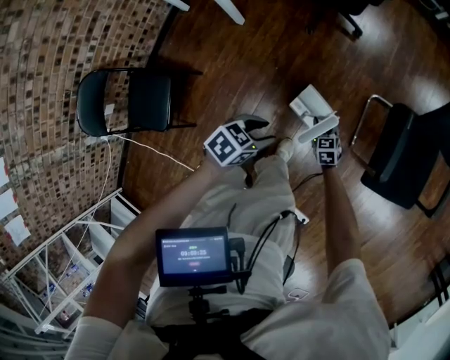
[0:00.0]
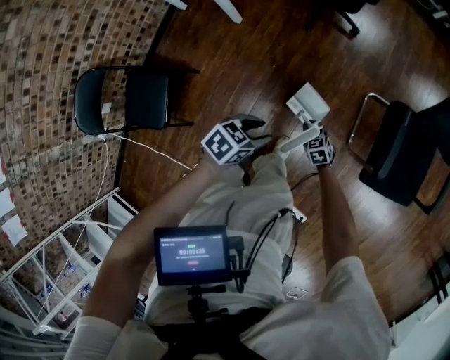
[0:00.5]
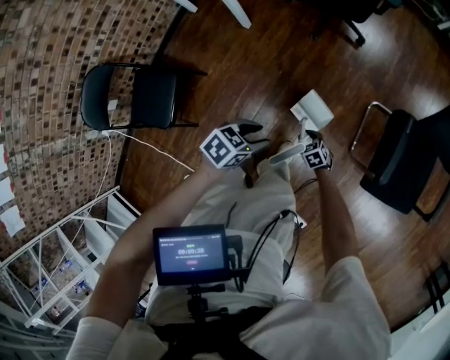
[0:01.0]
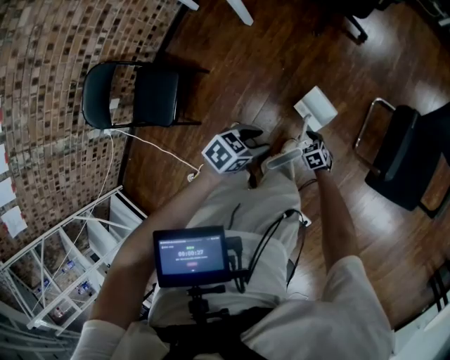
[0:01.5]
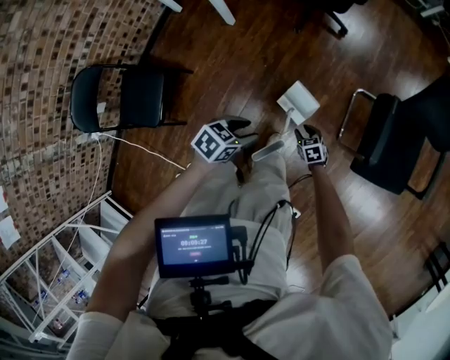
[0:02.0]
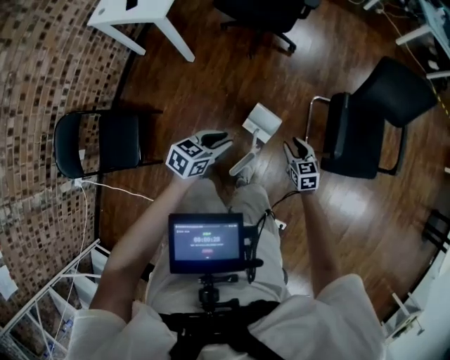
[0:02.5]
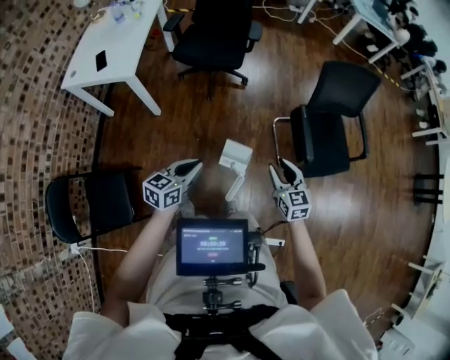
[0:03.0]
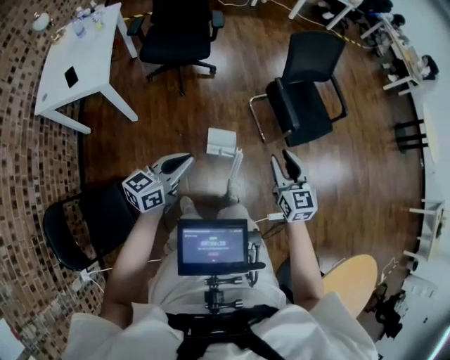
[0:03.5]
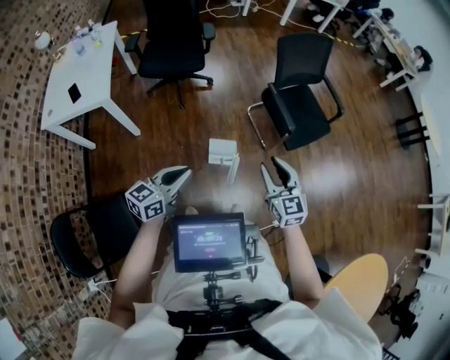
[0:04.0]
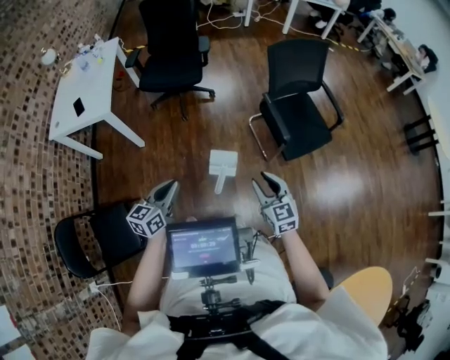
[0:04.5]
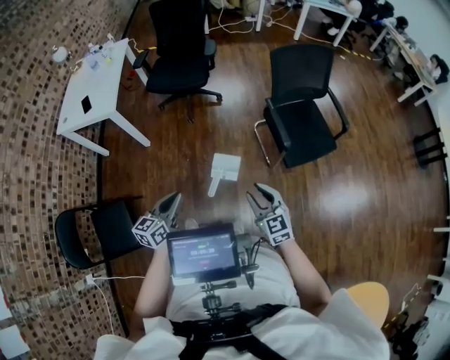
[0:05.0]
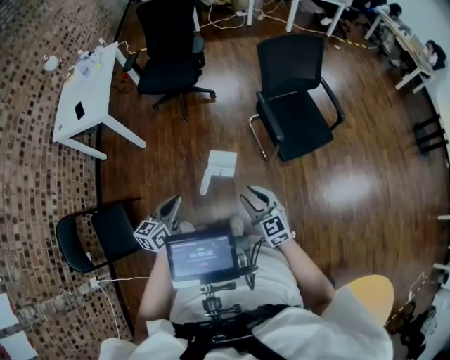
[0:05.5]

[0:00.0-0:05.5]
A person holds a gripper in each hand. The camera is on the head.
0:00.0 to 0:02.0: The left gripper ends up approximately 5 cm from where it was, while the right gripper changes place by about 10 cm, and opens.
0:02.0 to 0:03.5: The right gripper is displaced upward by approximately 50 cm, and angles its fingers upward, by some 40 degrees. Meanwhile the left gripper is displaced upward by approximately 25 cm, points its fingers roughly 40 degrees further upward, and closes.
0:03.5 to 0:05.5: The right gripper travels to the right, backward and downward by approximately 15 cm, and rotates roughly 20 degrees; the left gripper shifts some 15 cm to the right and backward, and rotates some 30 degrees.

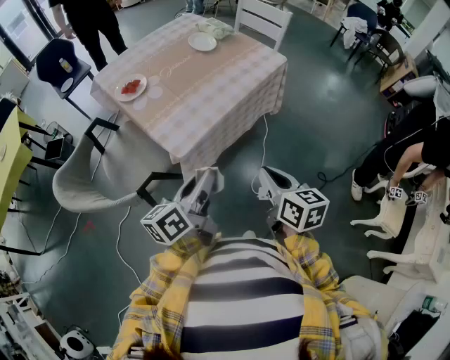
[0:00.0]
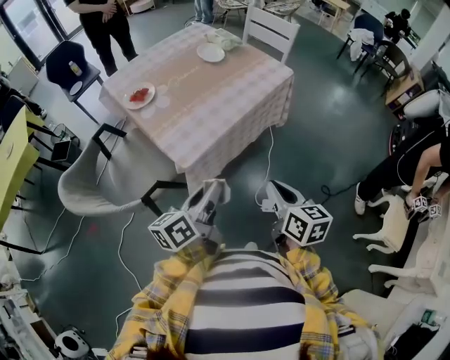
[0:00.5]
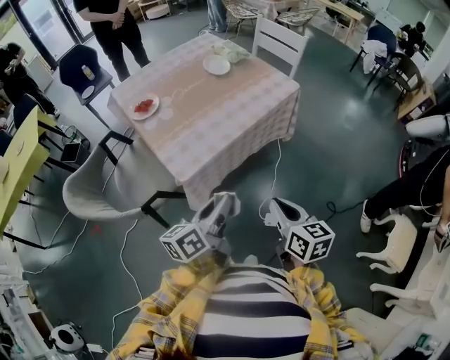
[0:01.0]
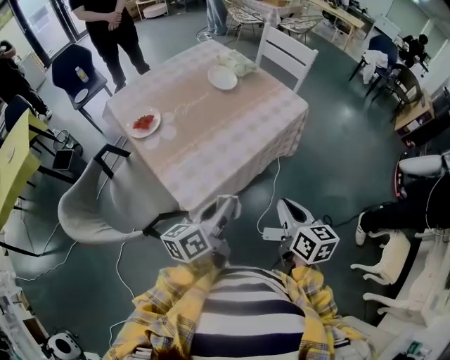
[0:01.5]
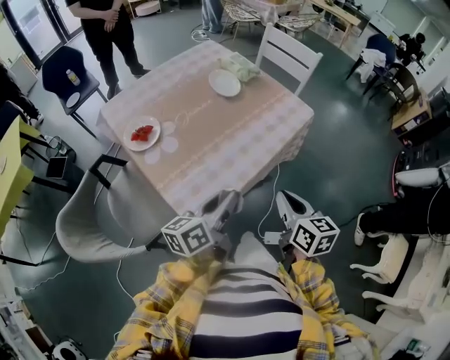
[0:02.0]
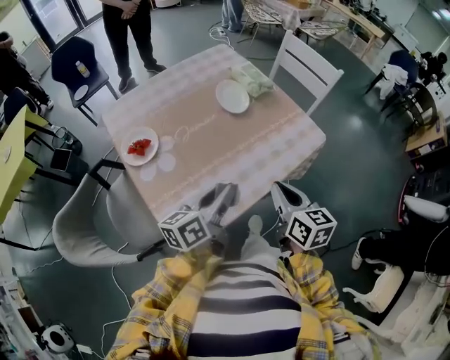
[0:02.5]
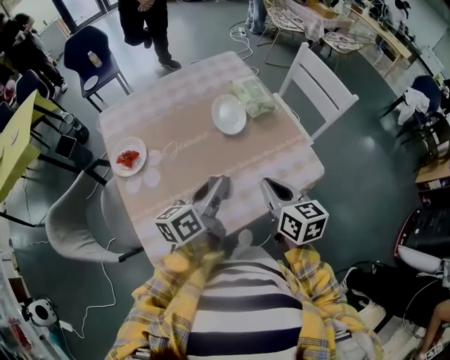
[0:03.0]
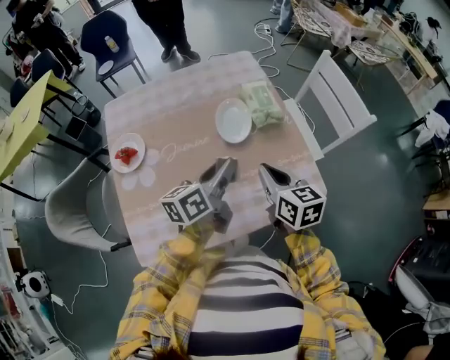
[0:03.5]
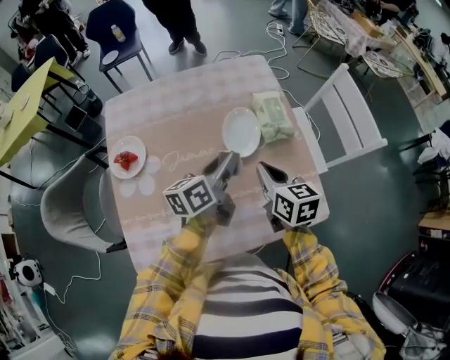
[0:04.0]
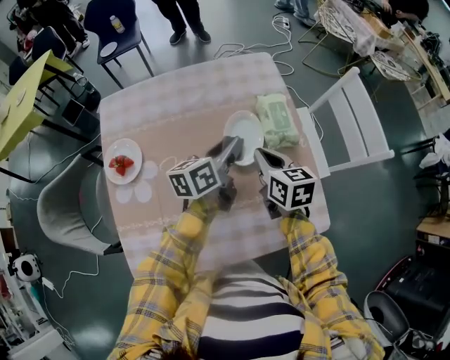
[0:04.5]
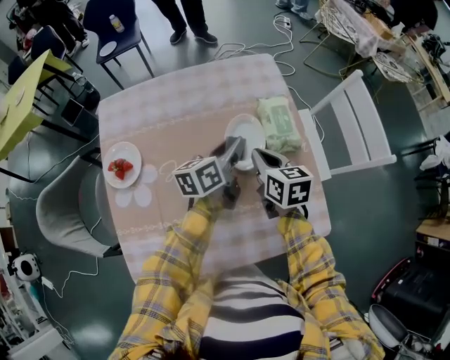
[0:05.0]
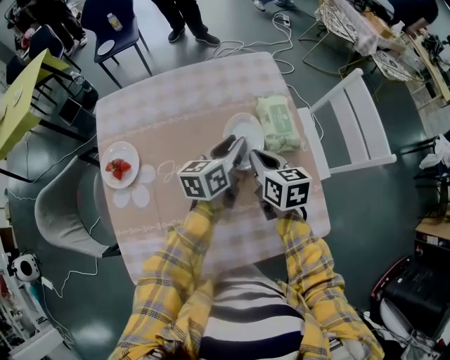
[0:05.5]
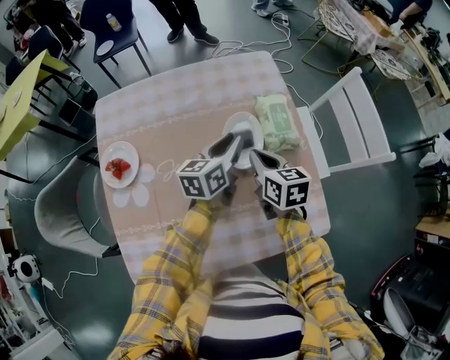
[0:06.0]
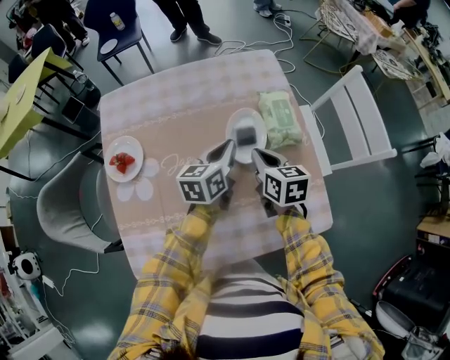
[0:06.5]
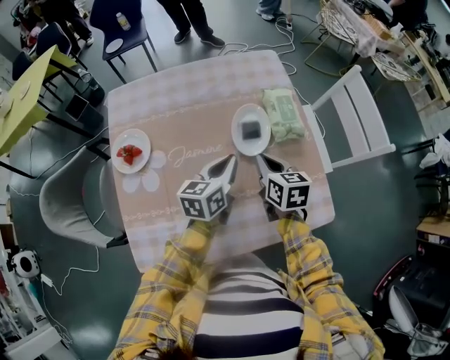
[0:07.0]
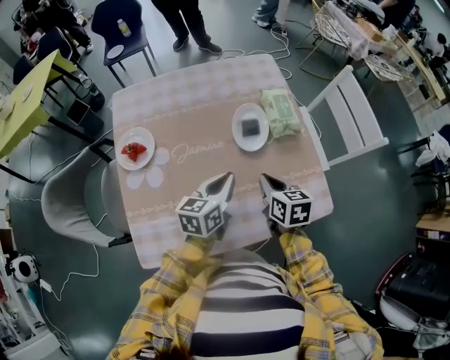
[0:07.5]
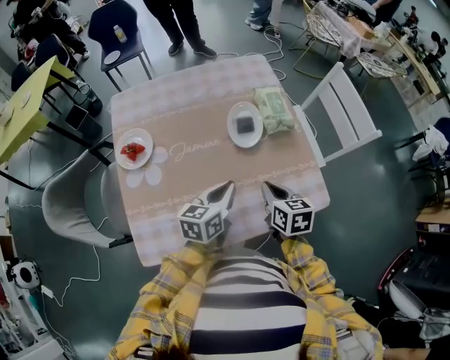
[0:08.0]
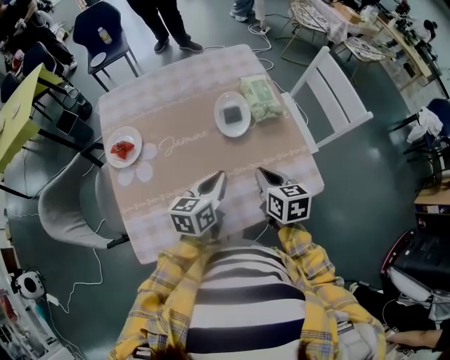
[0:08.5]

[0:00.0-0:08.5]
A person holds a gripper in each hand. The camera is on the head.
0:00.0 to 0:02.0: The two grippers go about 20 cm forward.
0:02.0 to 0:04.0: The right gripper moves roughly 40 cm, and swivels about 40 degrees, while the left gripper changes place by approximately 35 cm, and changes its angle by roughly 30 degrees.
0:04.0 to 0:06.5: The left gripper heads forward and downward, covering roughly 10 cm, and closes up. The right gripper goes some 5 cm forward.
0:06.5 to 0:08.5: Both grippers travel together backward, approximately 15 cm.

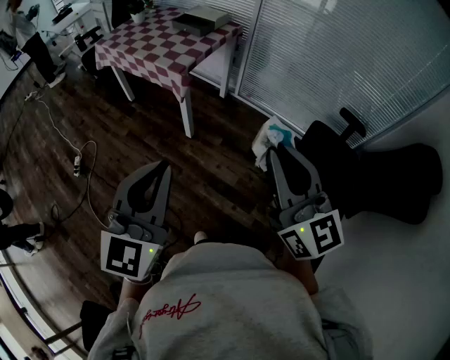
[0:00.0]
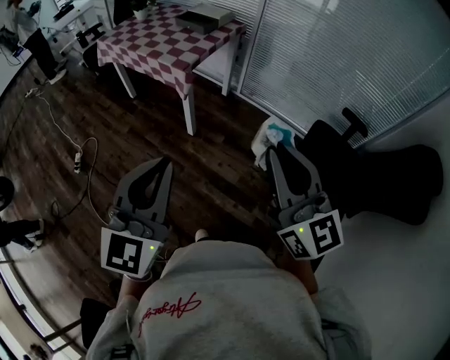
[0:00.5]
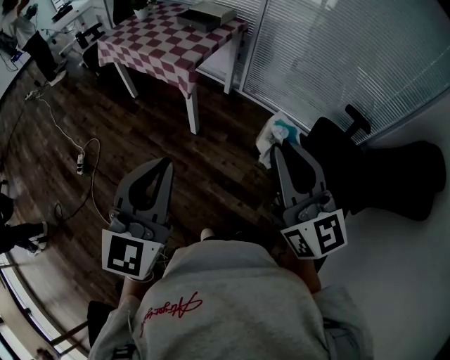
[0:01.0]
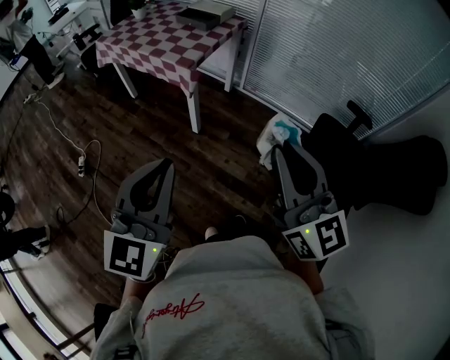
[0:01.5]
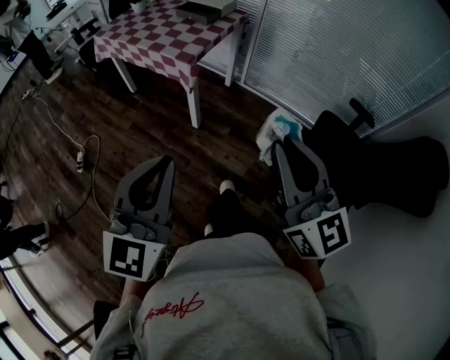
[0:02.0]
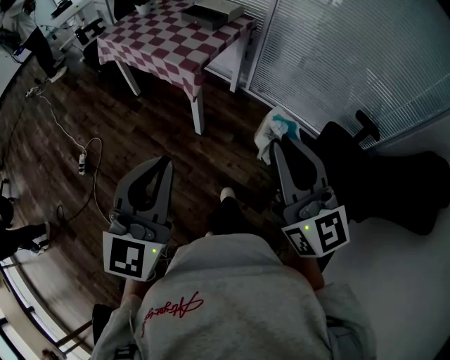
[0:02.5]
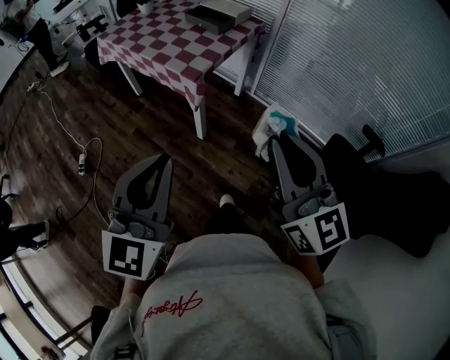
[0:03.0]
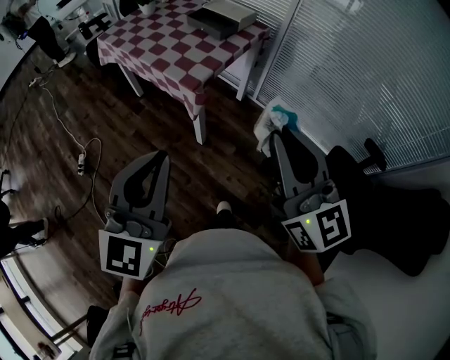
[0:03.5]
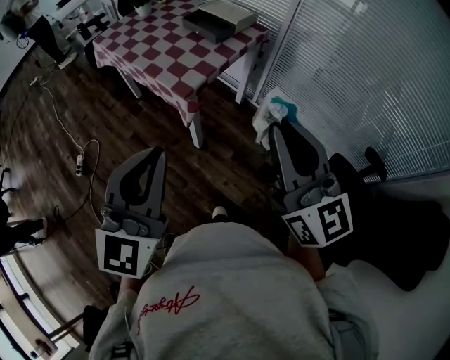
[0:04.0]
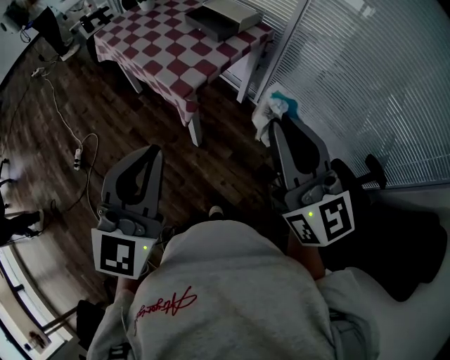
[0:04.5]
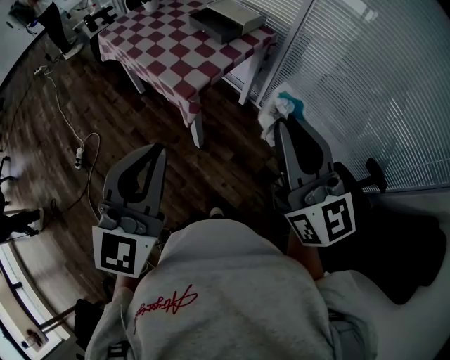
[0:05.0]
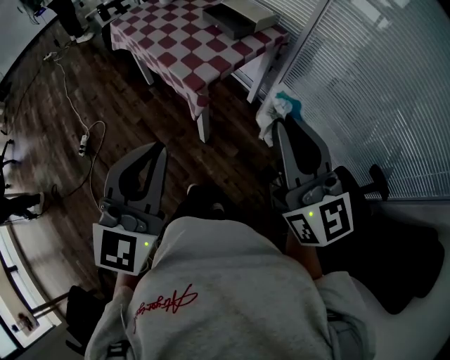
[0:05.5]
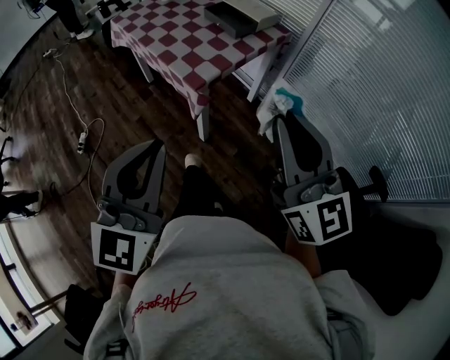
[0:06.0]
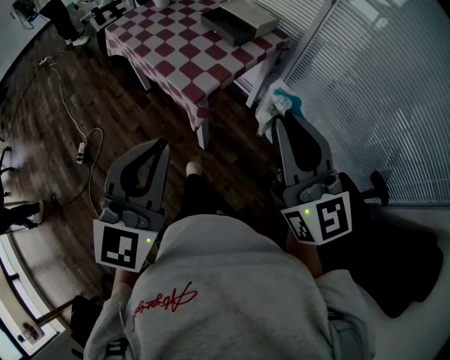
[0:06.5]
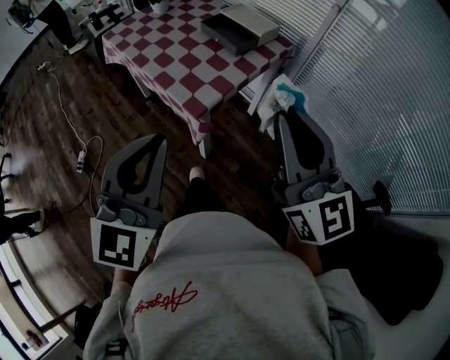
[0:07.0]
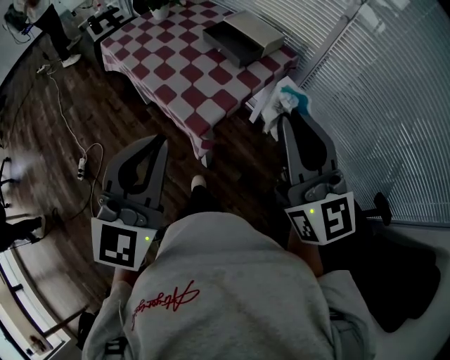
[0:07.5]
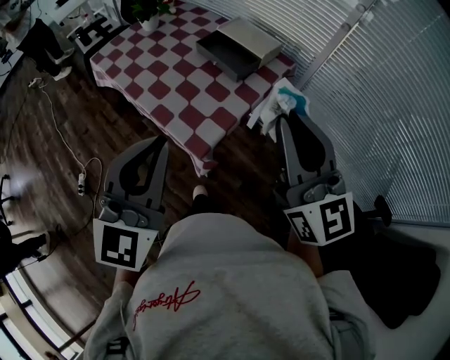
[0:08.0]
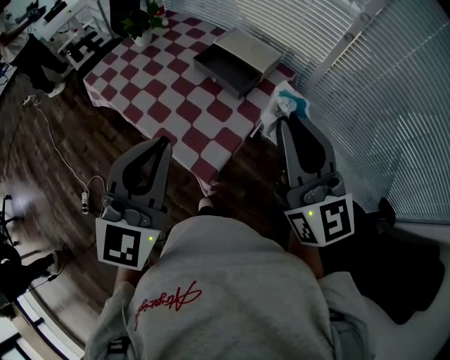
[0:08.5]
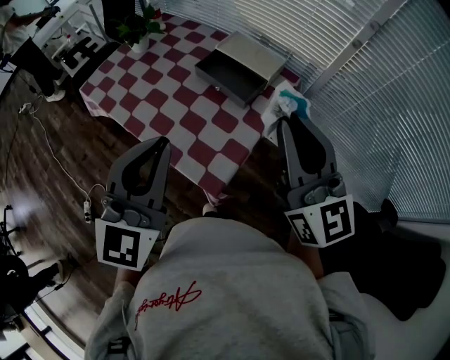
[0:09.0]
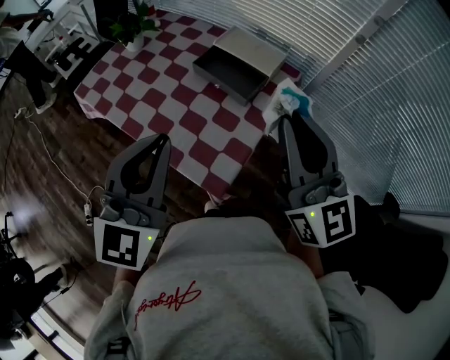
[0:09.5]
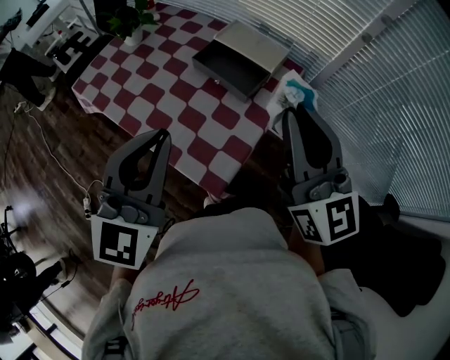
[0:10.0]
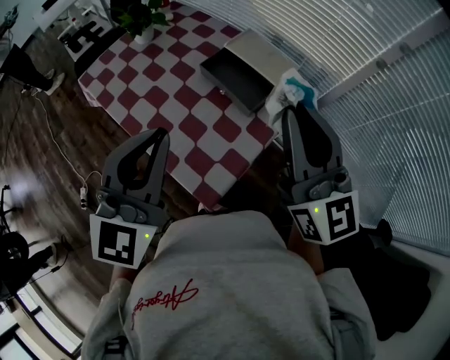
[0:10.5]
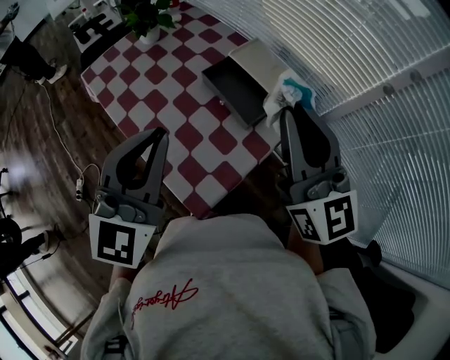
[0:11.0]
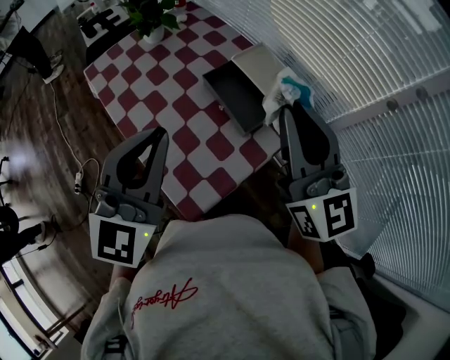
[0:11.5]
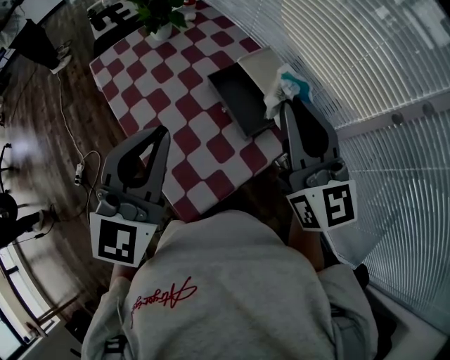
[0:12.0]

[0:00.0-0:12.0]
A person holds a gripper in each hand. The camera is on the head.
0:00.0 to 0:02.0: The two grippers go roughly 5 cm to the left.
0:02.0 to 0:04.0: Both grippers move forward, roughly 25 cm.
0:04.0 to 0:06.0: There are only small adjustments of the grippers.
0:06.0 to 0:08.0: Both grippers travel together forward, roughly 25 cm.
0:08.0 to 0:10.0: Both grippers move forward, about 15 cm.
0:10.0 to 0:12.0: The left gripper moves forward, roughly 10 cm, while the right gripper is displaced forward by approximately 15 cm.

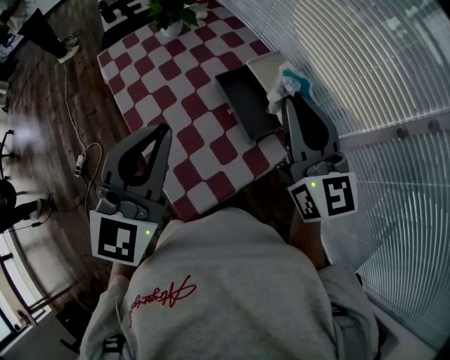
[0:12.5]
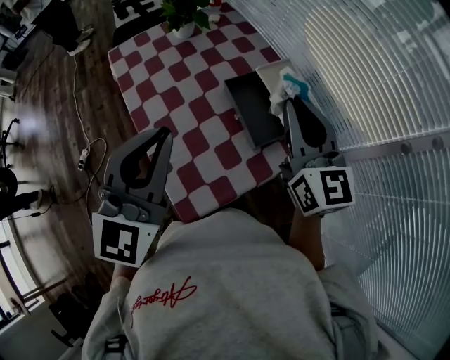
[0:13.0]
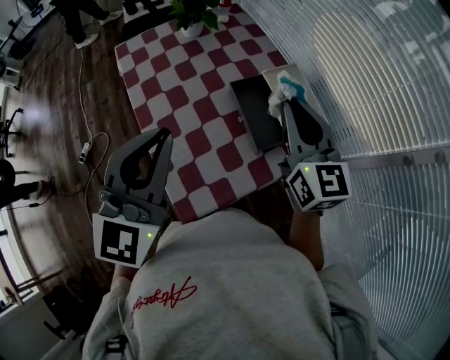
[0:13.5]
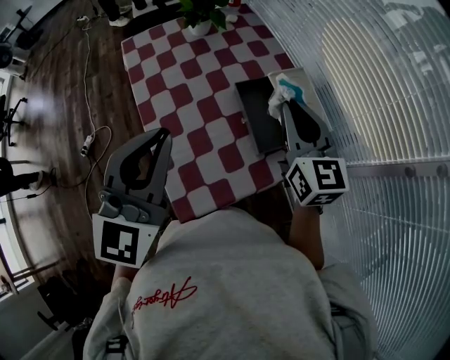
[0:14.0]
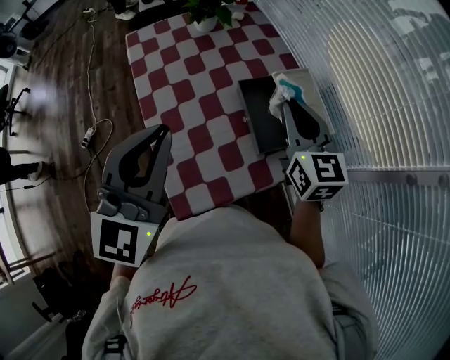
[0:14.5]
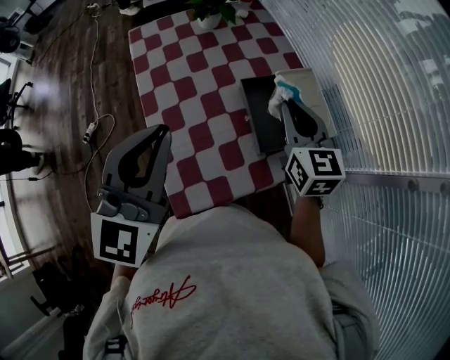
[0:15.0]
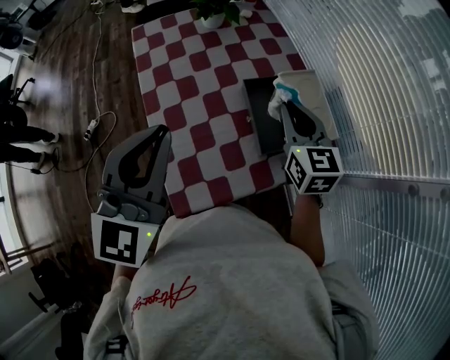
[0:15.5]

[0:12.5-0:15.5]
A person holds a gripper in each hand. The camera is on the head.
0:12.5 to 0:14.0: The right gripper is displaced downward and forward by roughly 10 cm.
0:14.0 to 0:15.5: The right gripper shifts roughly 5 cm downward.
